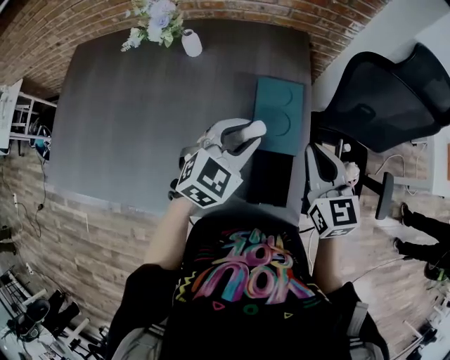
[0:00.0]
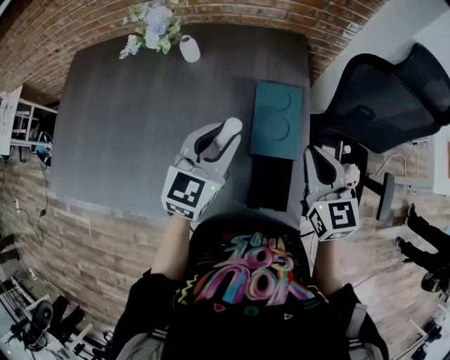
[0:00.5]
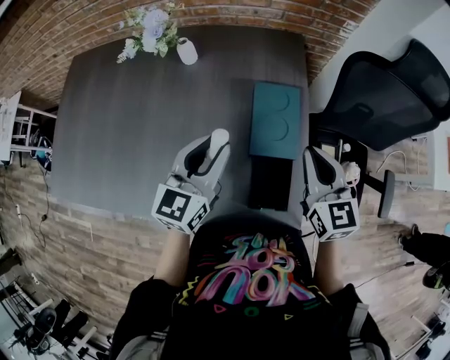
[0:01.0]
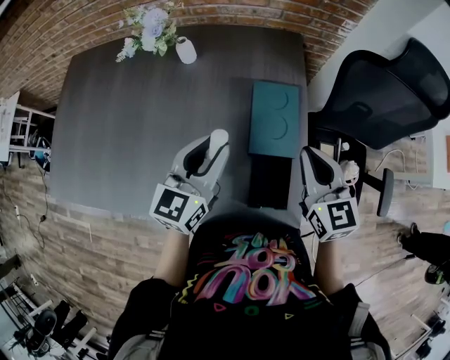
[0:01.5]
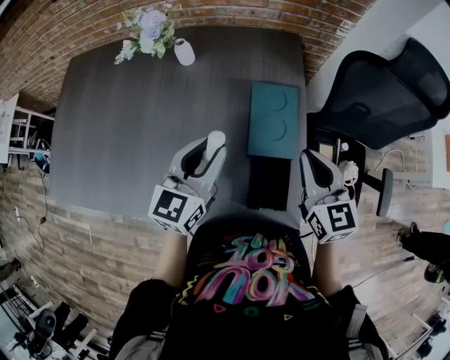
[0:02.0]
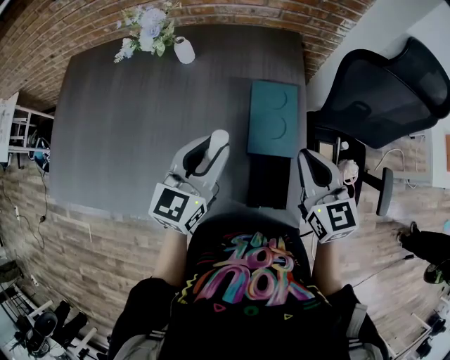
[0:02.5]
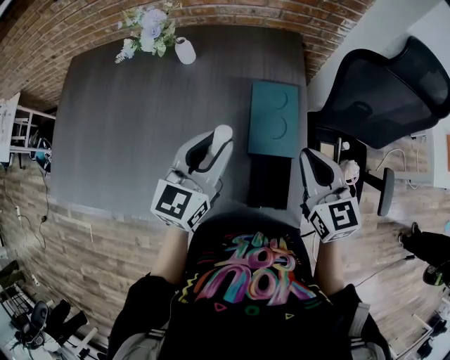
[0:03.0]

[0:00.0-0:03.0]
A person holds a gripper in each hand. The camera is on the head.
0:00.0 to 0:01.5: The left gripper moves to the left, some 5 cm, and changes its angle by roughly 30 degrees.
0:01.5 to 0:03.0: The grippers make only small movements.

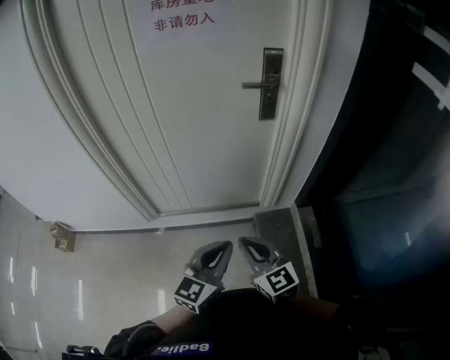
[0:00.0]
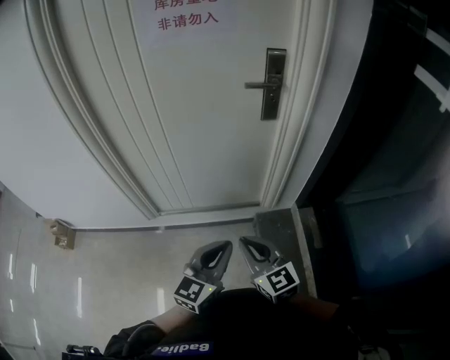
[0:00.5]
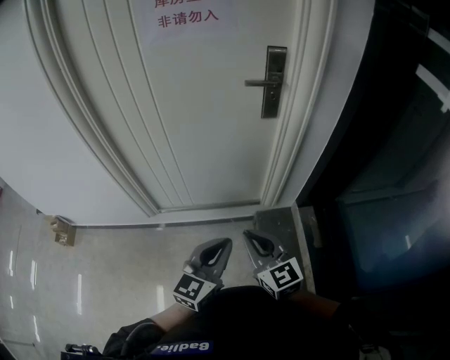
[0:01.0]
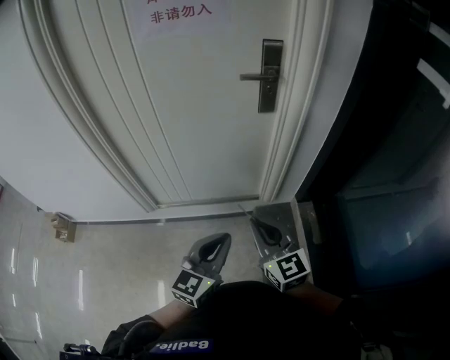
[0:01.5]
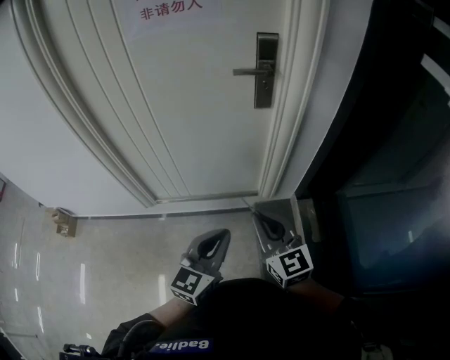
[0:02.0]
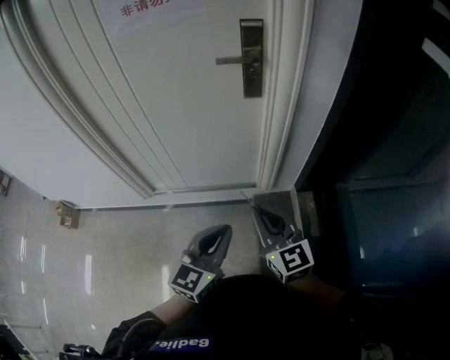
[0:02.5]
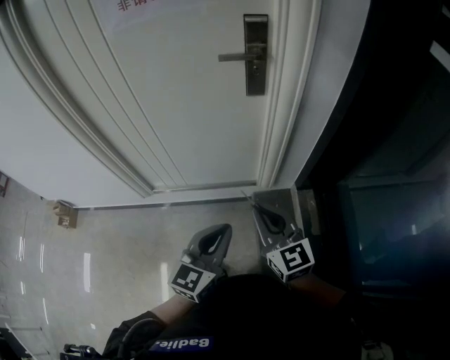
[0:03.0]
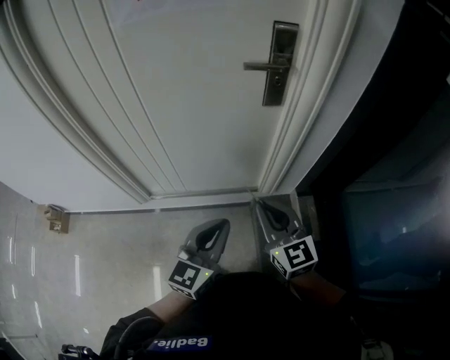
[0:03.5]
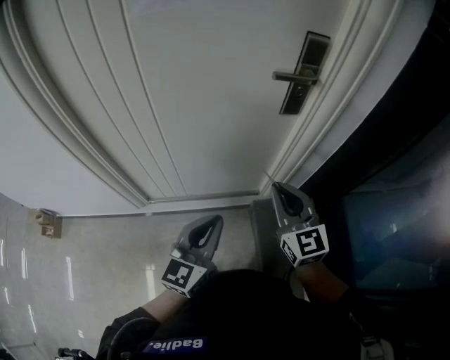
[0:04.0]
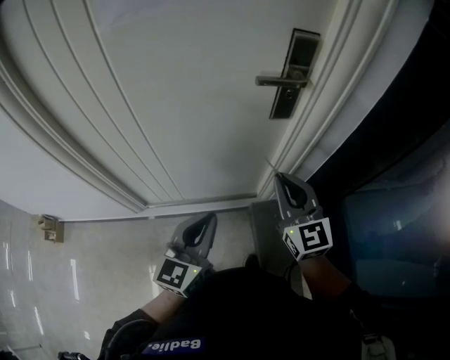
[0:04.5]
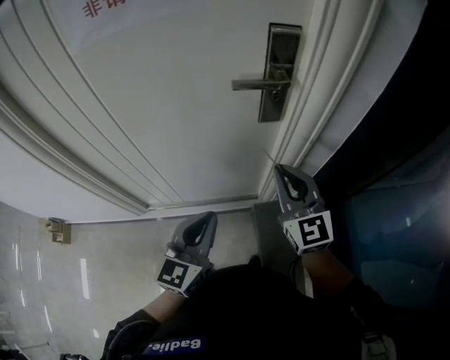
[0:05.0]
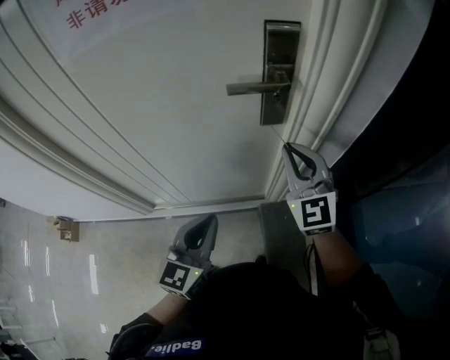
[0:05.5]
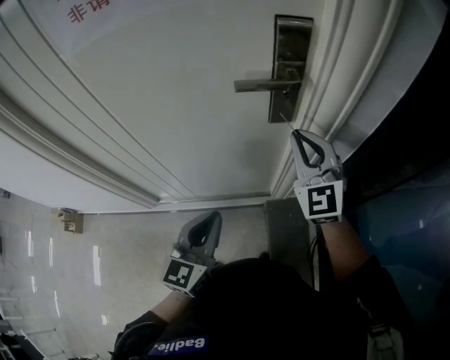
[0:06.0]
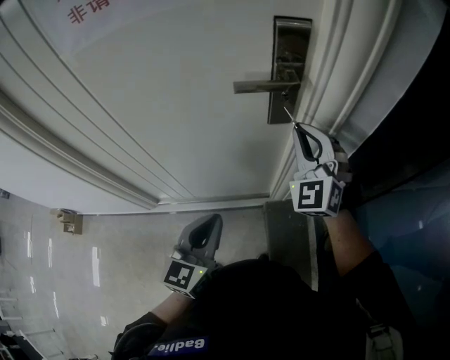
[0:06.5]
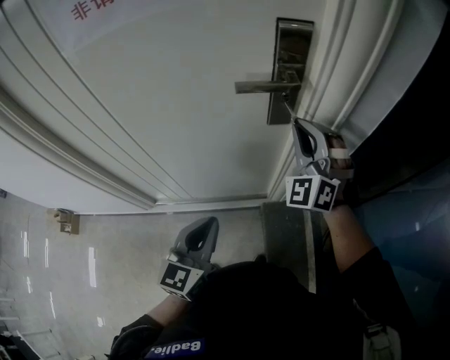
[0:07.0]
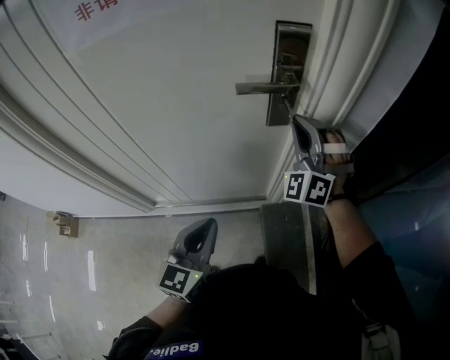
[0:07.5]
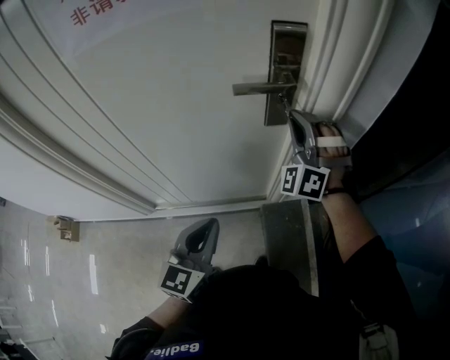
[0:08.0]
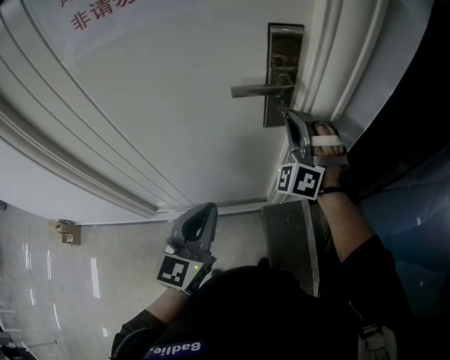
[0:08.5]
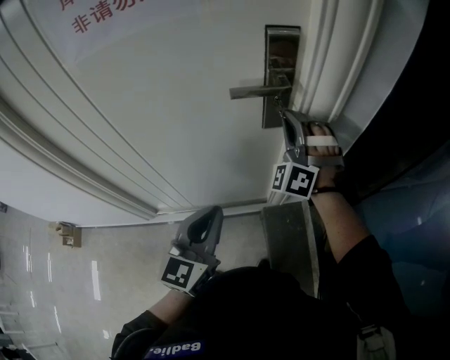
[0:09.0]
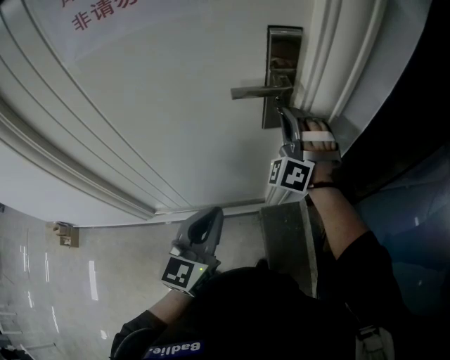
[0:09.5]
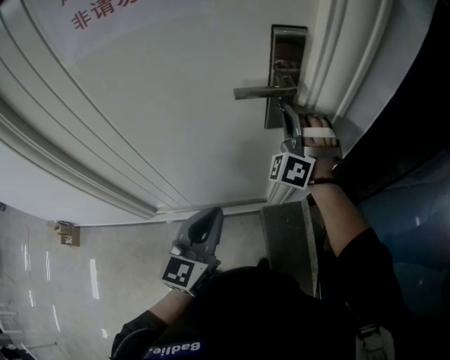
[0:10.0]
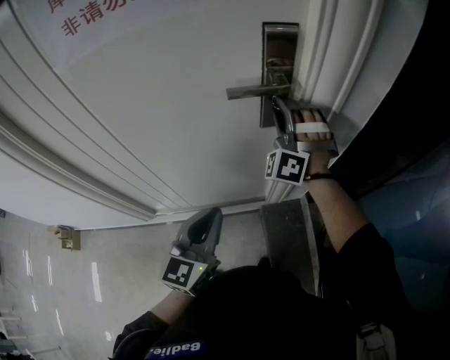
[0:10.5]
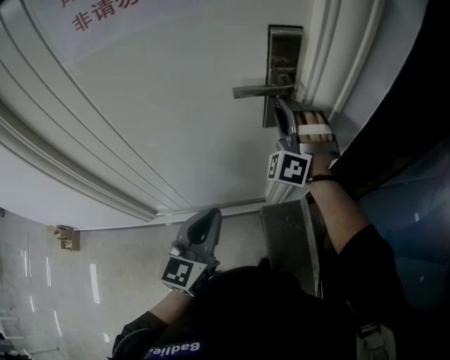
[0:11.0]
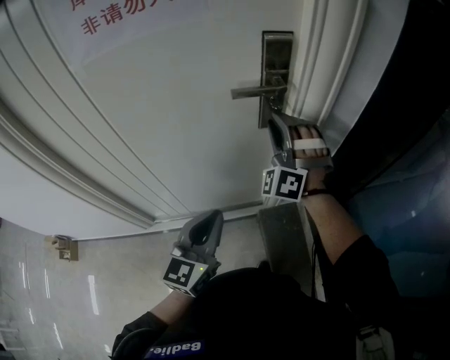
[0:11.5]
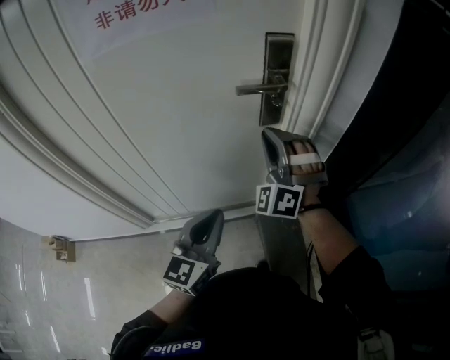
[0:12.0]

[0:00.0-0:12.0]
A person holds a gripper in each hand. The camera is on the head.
0:00.0 to 0:02.0: The right gripper goes about 10 cm to the right.
0:02.0 to 0:04.0: The right gripper goes some 15 cm forward. Meanwhile the left gripper is displaced forward and to the left by roughly 15 cm.
0:04.0 to 0:06.0: The right gripper moves forward and to the right, approximately 20 cm, and rotates approximately 20 degrees; the left gripper travels forward and to the right by approximately 15 cm.
0:06.0 to 0:08.0: The right gripper rolls counterclockwise, seen from behind, by roughly 50 degrees.
0:08.0 to 0:10.0: The grippers stay close to where they were, moving slightly.
0:10.0 to 0:12.0: The left gripper goes some 5 cm backward. Meanwhile the right gripper goes some 15 cm backward, and opens, then closes again.

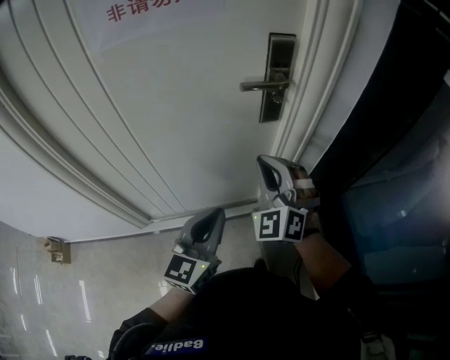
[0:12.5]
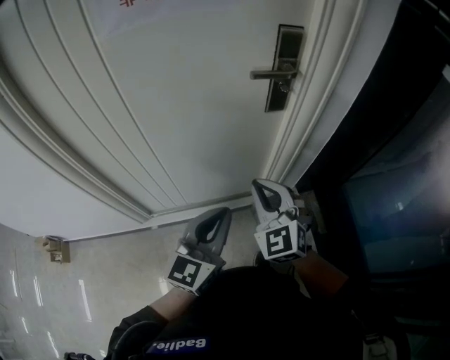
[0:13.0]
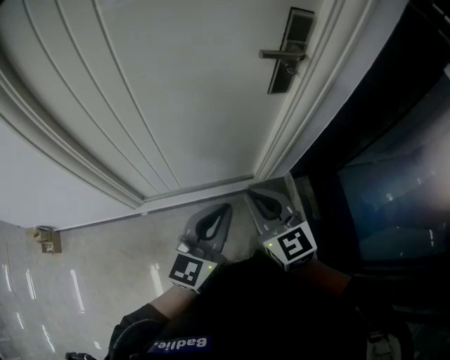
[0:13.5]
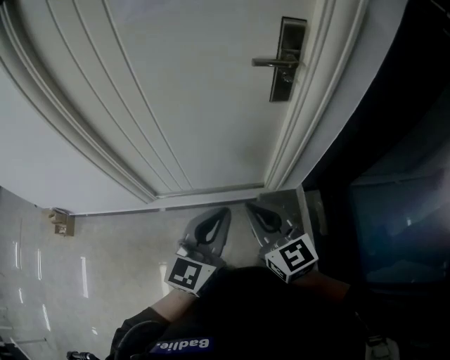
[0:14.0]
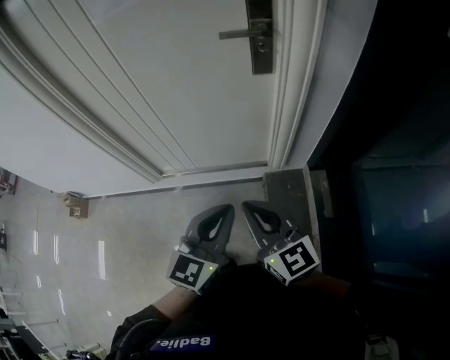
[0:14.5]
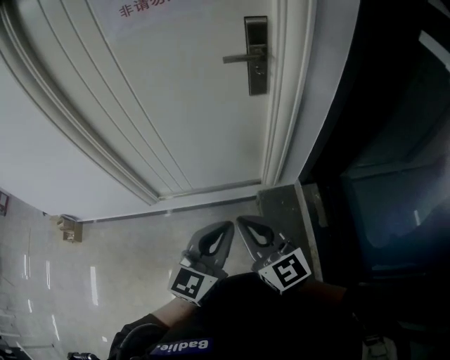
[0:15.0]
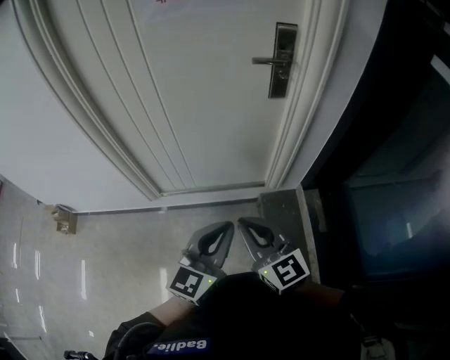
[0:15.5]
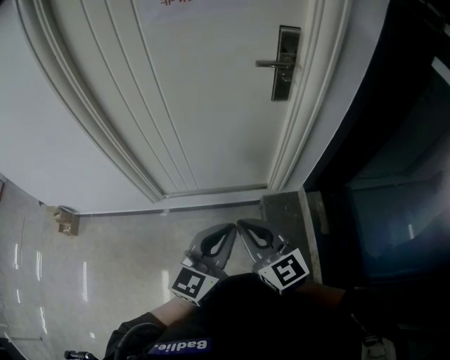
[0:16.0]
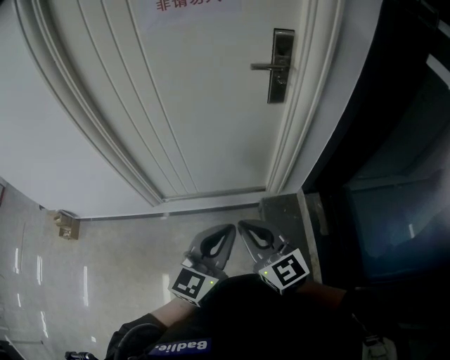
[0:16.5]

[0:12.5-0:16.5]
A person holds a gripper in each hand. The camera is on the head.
0:12.5 to 0:14.5: The left gripper travels backward and to the right by some 15 cm. The right gripper is displaced backward by roughly 25 cm, and rotates around the line of its fingers by some 60 degrees, clockwise from behind.
0:14.5 to 0:16.5: The grippers both shift to the left by roughly 10 cm.

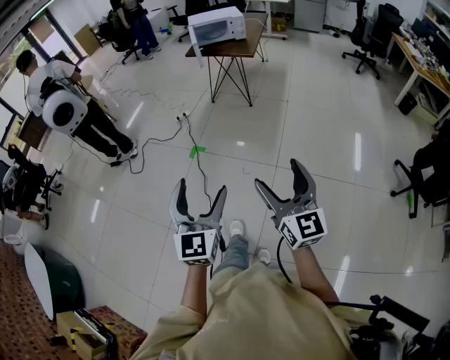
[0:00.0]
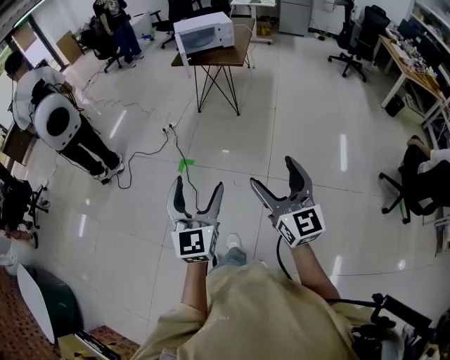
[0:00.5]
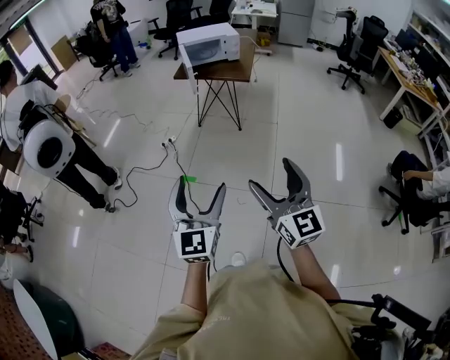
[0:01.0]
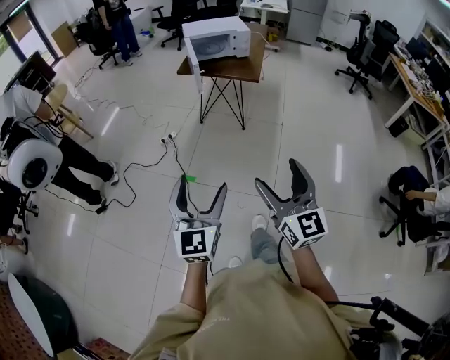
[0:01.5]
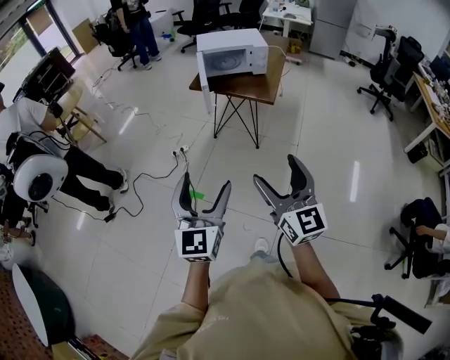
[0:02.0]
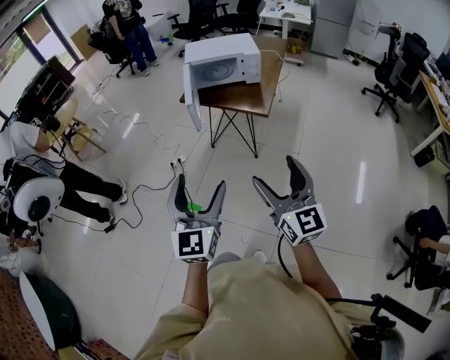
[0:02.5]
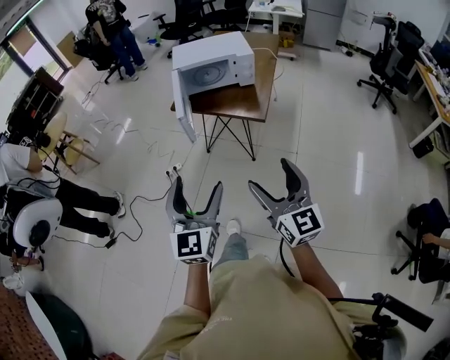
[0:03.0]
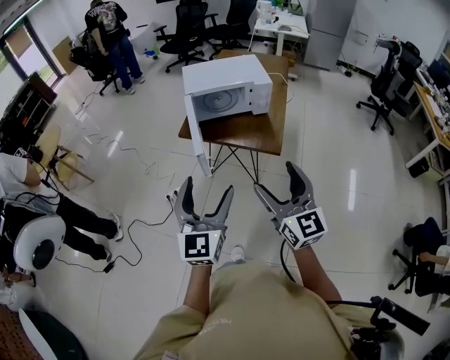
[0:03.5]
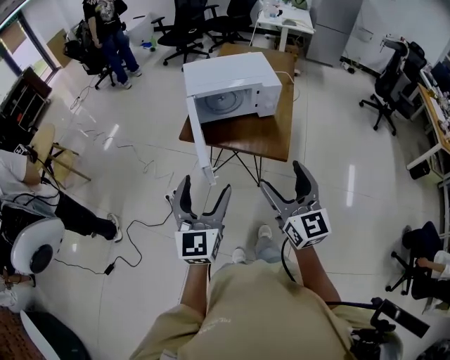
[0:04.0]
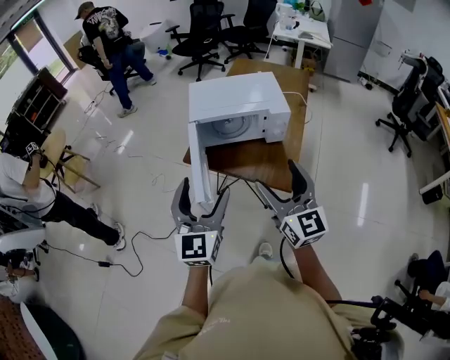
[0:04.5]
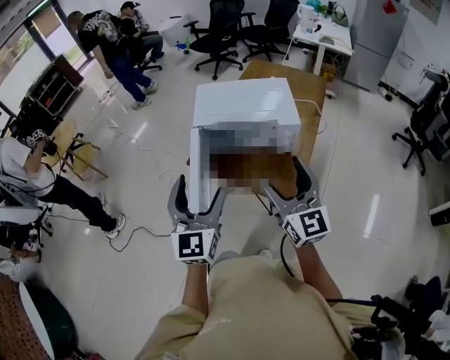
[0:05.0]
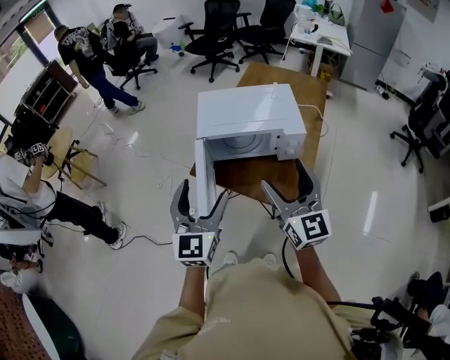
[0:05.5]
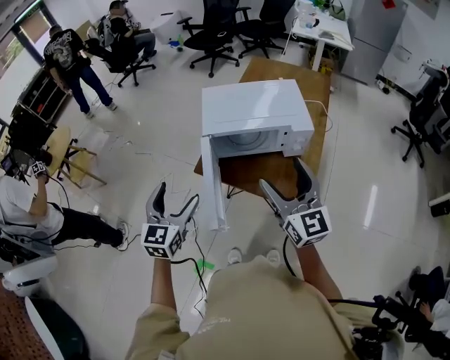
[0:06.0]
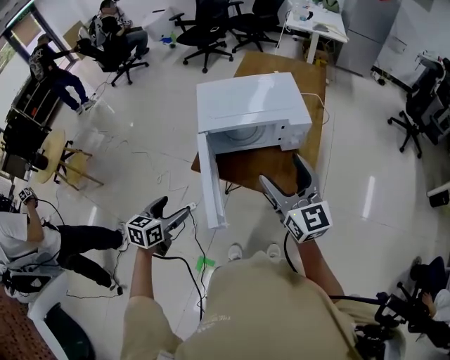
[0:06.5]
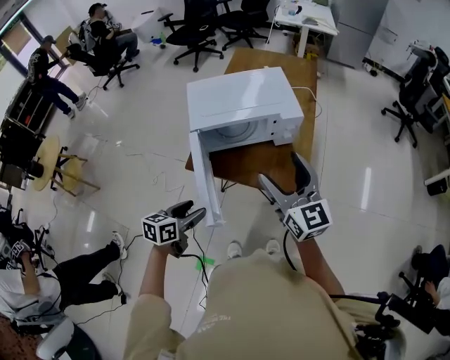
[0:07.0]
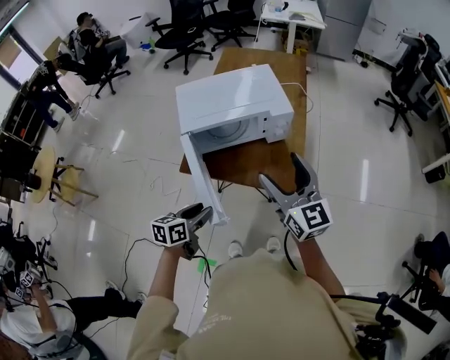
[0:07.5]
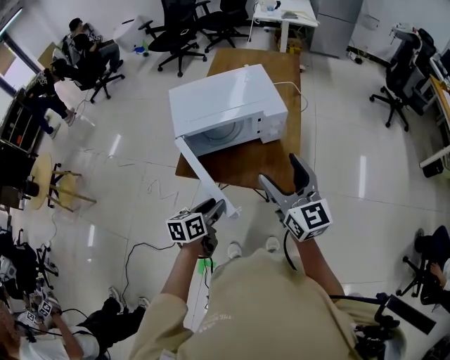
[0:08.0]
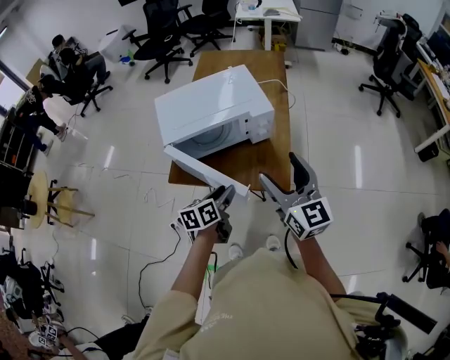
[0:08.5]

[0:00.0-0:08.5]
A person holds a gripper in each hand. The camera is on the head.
0:00.0 to 0:02.0: Both grippers are carried forward, approximately 40 cm.
0:02.0 to 0:04.0: The pair of grippers is taken forward, approximately 40 cm.
0:04.0 to 0:06.5: The left gripper heads forward, downward and to the left, covering some 35 cm, and angles its fingers downward, by roughly 40 degrees; the right gripper travels forward by roughly 25 cm.
0:06.5 to 0:08.5: The right gripper is displaced to the right by approximately 10 cm; the left gripper goes approximately 25 cm to the right and forward, swivels roughly 20 degrees, and closes up.
